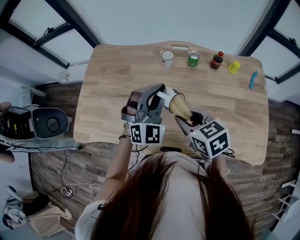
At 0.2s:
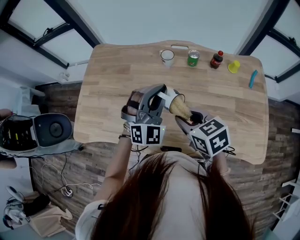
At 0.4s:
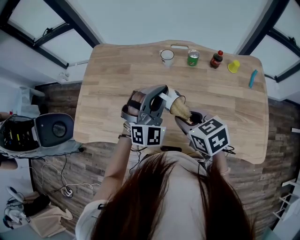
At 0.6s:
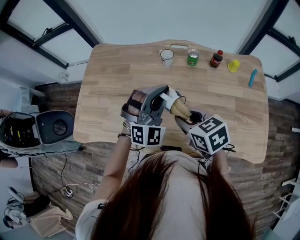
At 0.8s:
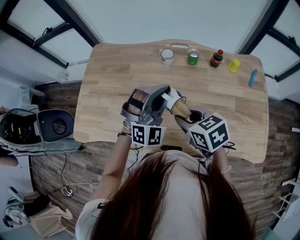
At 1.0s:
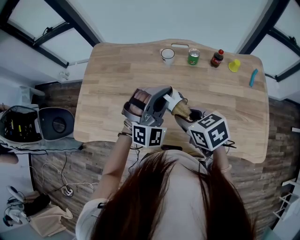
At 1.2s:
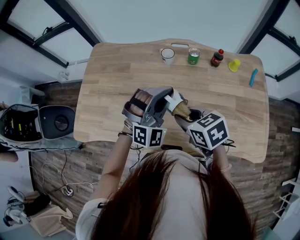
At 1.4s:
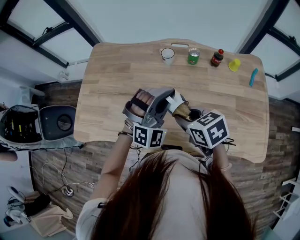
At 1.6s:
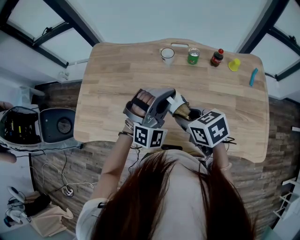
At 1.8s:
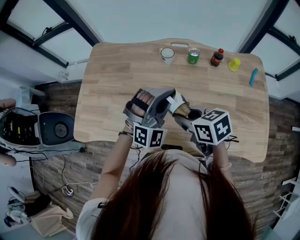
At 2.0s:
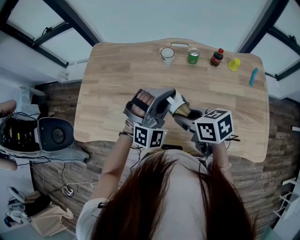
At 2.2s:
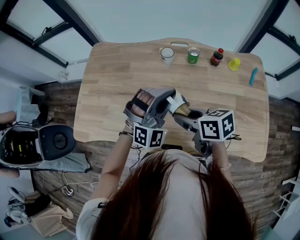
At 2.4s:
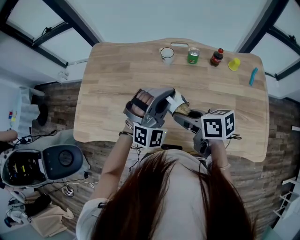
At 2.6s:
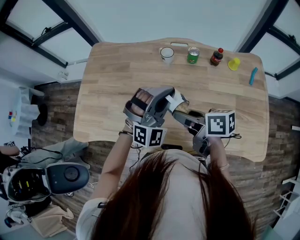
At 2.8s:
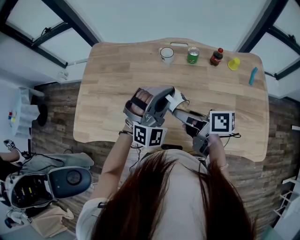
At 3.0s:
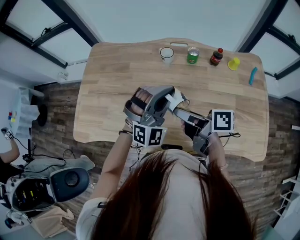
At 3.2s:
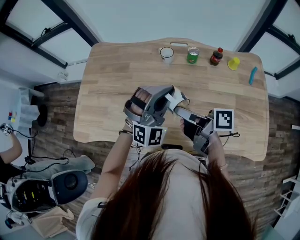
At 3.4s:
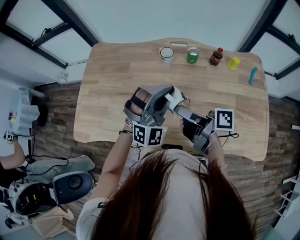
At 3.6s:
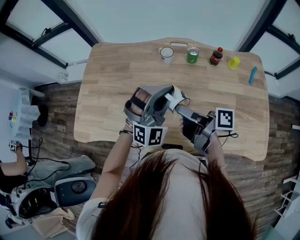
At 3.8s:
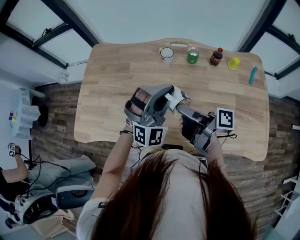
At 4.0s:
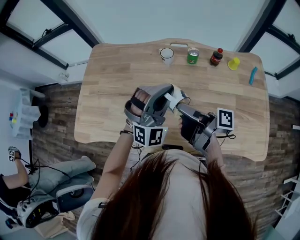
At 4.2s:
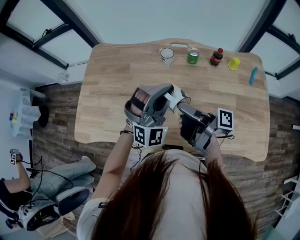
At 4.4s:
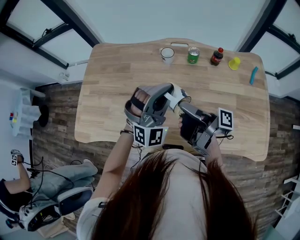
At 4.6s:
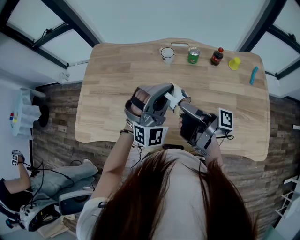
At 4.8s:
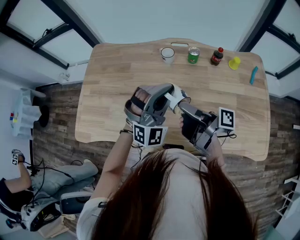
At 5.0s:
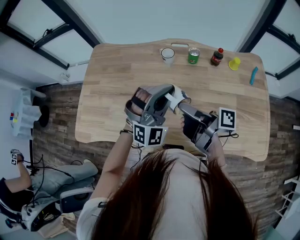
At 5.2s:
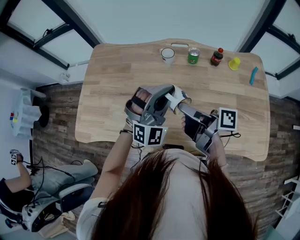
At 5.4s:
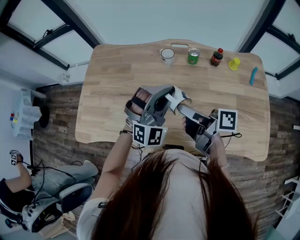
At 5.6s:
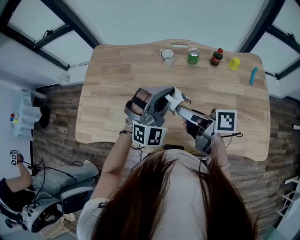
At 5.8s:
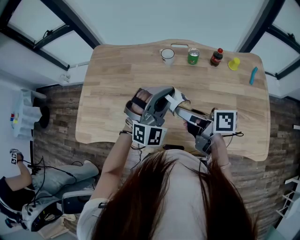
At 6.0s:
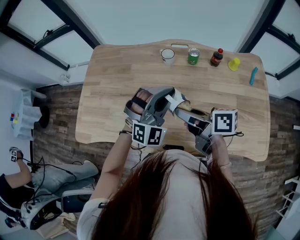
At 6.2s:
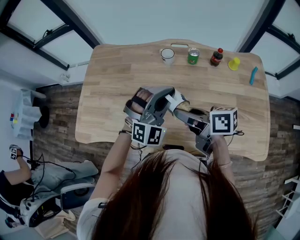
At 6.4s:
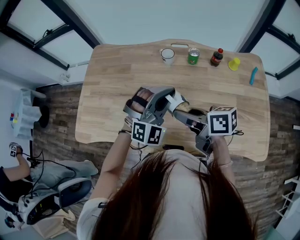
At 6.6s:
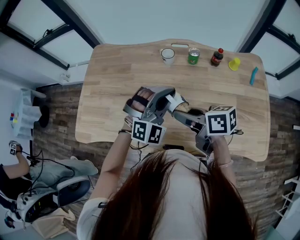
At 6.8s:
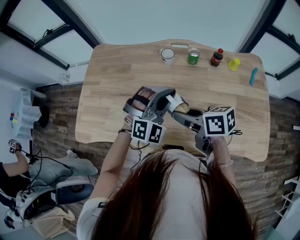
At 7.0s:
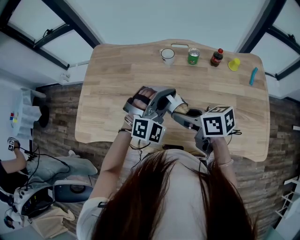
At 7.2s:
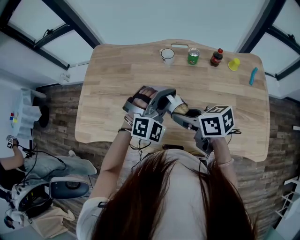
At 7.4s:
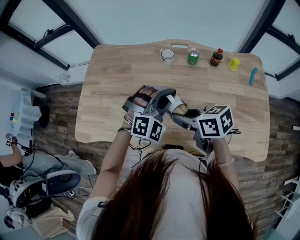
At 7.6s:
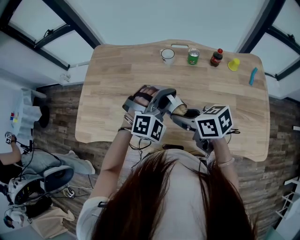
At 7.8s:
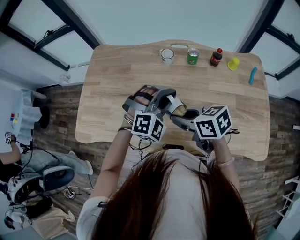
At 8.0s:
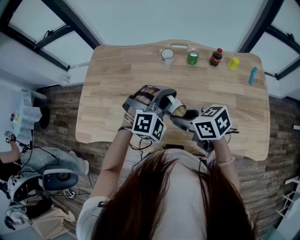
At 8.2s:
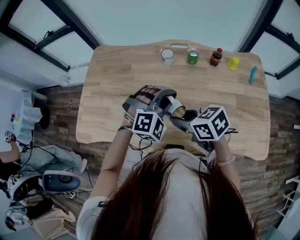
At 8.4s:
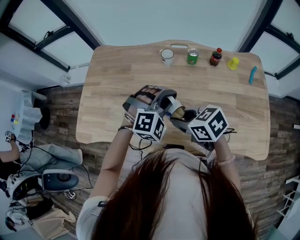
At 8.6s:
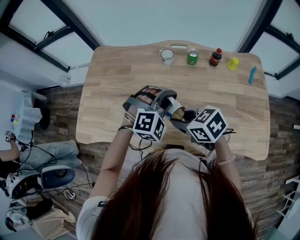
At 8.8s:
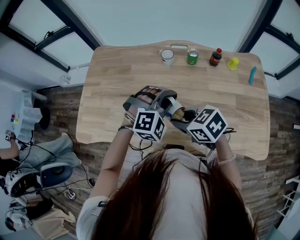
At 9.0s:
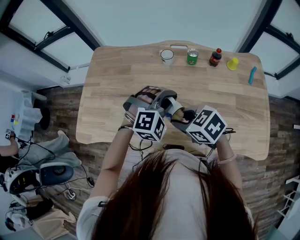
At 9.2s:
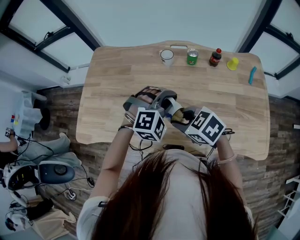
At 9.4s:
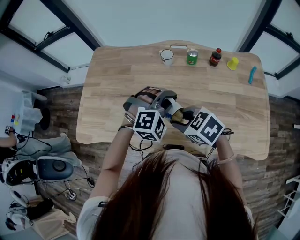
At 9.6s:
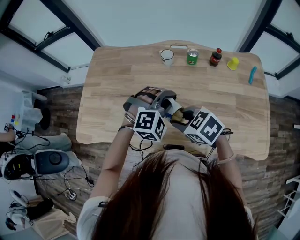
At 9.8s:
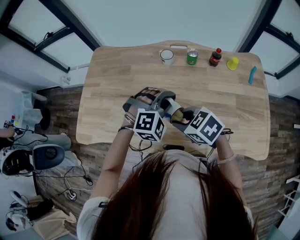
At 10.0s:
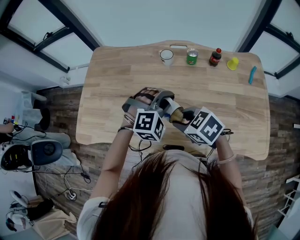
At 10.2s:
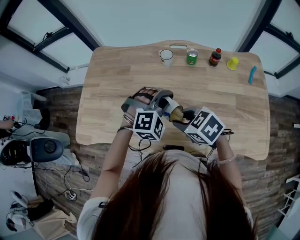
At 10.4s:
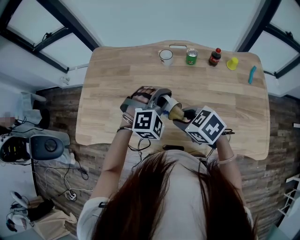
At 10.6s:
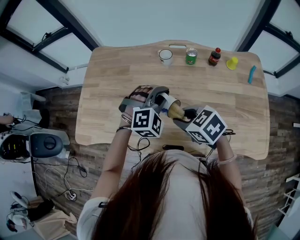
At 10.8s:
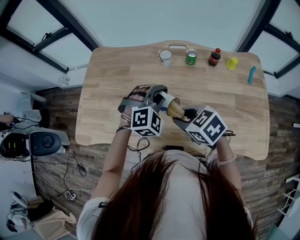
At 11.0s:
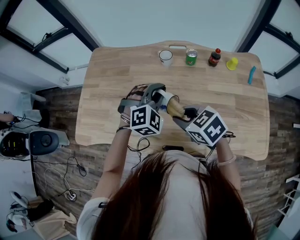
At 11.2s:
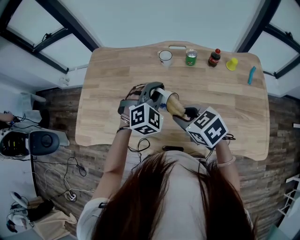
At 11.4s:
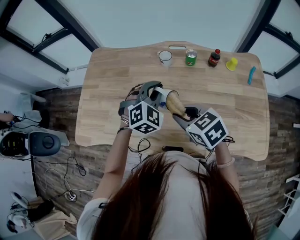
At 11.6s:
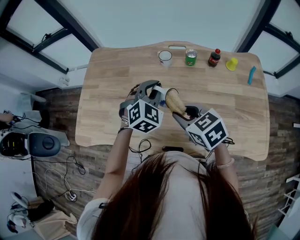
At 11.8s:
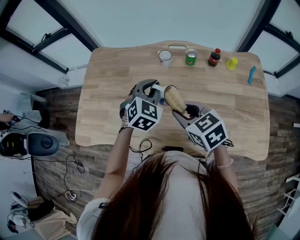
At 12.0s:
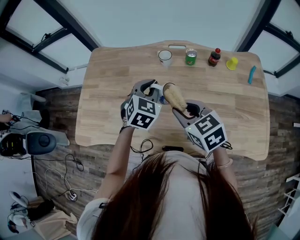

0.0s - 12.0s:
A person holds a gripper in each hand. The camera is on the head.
0.0s - 1.6s: The grippers make only small movements.
1.6s - 3.0s: The right gripper points its fingers about 30 degrees further upward.
3.0s - 4.4s: The right gripper changes its angle by approximately 40 degrees.
4.4s - 6.0s: The right gripper changes its angle by roughly 50 degrees.
6.0s - 7.6s: The right gripper turns by roughly 30 degrees.
7.6s - 9.0s: The right gripper changes its angle by approximately 30 degrees.
9.0s - 10.4s: The grippers stay close to where they were, moving slightly.
10.4s - 12.0s: The left gripper travels forward by about 5 cm, and rotates around the line of its fingers by some 40 degrees, counterclockwise from behind. The right gripper ends up some 5 cm from where it was, and swivels about 20 degrees.

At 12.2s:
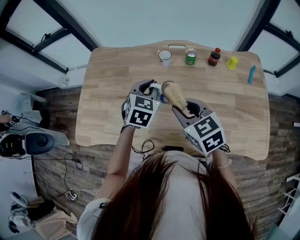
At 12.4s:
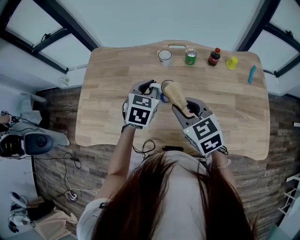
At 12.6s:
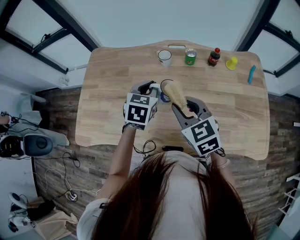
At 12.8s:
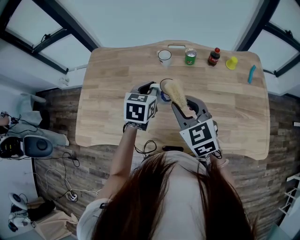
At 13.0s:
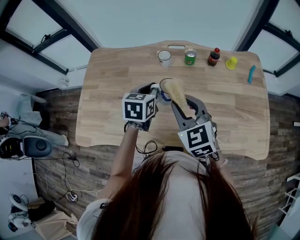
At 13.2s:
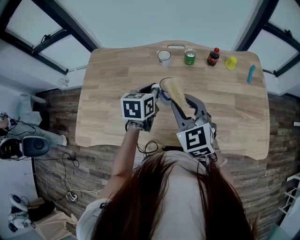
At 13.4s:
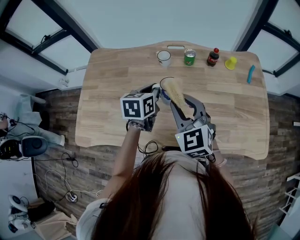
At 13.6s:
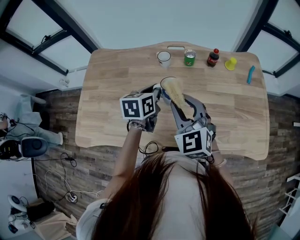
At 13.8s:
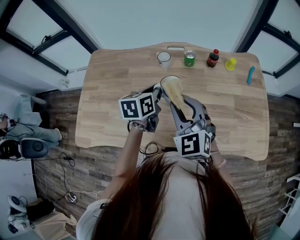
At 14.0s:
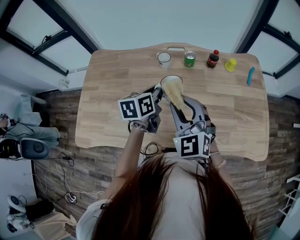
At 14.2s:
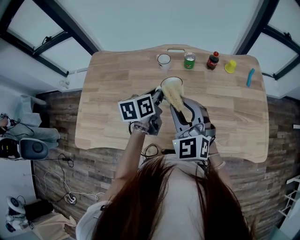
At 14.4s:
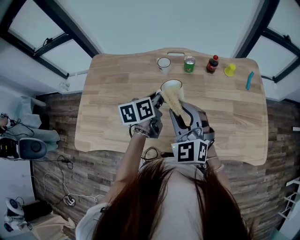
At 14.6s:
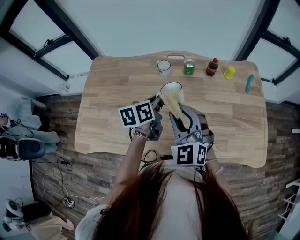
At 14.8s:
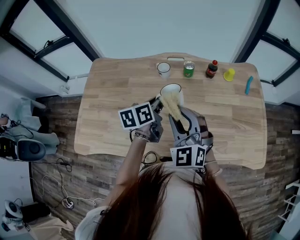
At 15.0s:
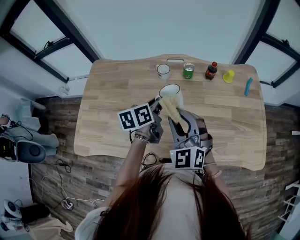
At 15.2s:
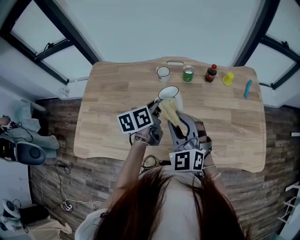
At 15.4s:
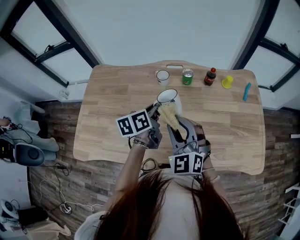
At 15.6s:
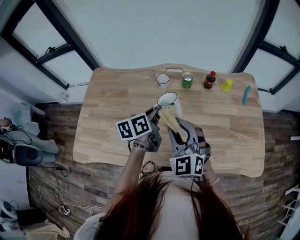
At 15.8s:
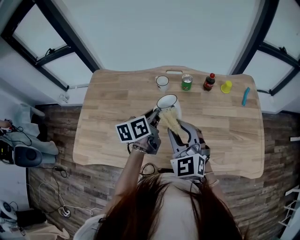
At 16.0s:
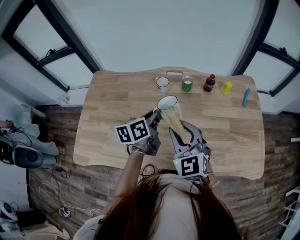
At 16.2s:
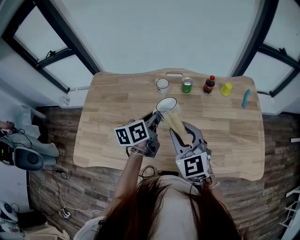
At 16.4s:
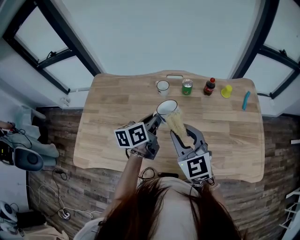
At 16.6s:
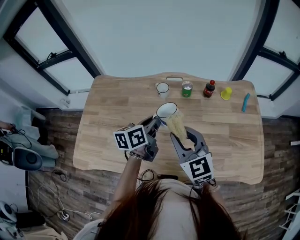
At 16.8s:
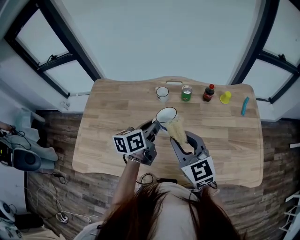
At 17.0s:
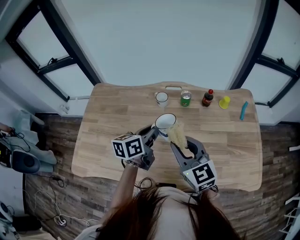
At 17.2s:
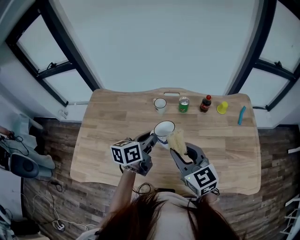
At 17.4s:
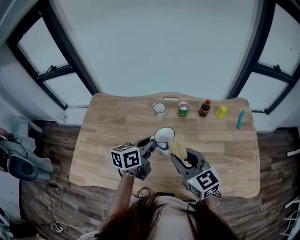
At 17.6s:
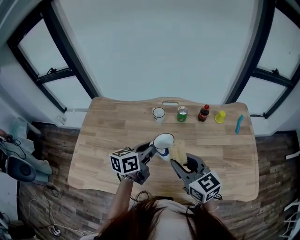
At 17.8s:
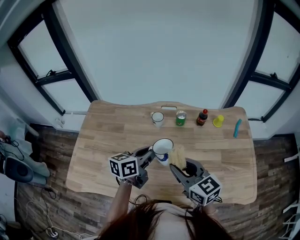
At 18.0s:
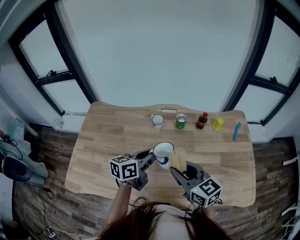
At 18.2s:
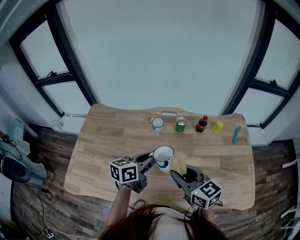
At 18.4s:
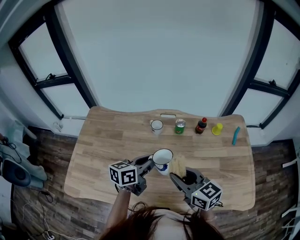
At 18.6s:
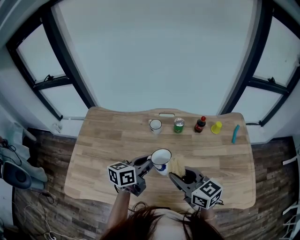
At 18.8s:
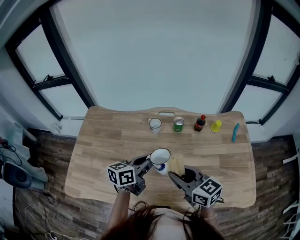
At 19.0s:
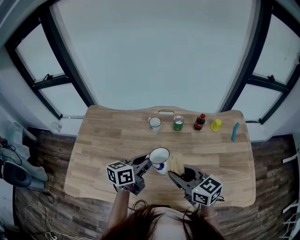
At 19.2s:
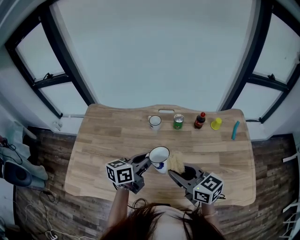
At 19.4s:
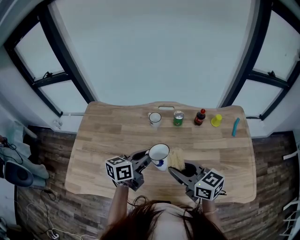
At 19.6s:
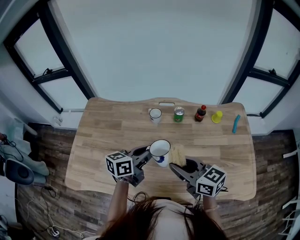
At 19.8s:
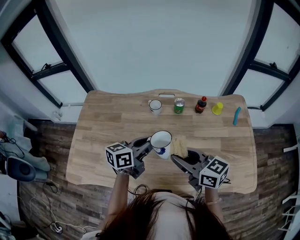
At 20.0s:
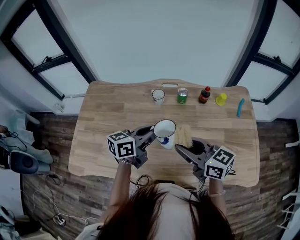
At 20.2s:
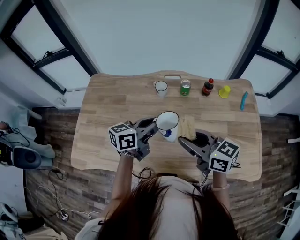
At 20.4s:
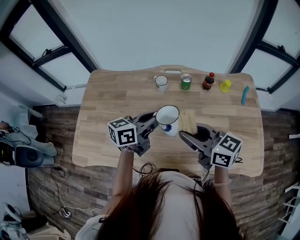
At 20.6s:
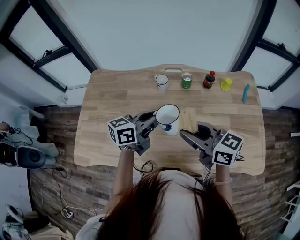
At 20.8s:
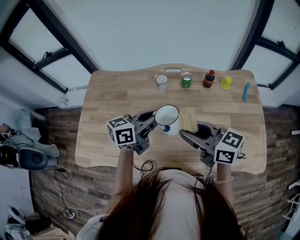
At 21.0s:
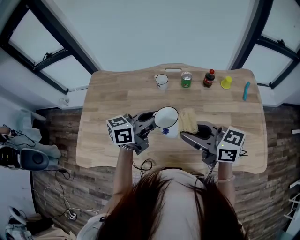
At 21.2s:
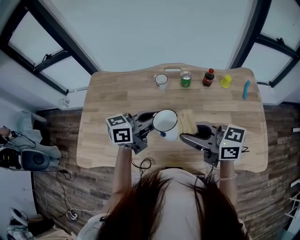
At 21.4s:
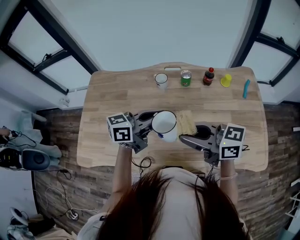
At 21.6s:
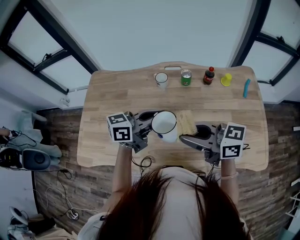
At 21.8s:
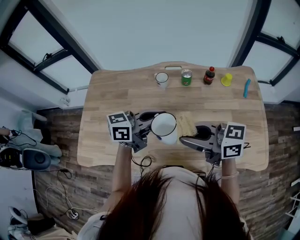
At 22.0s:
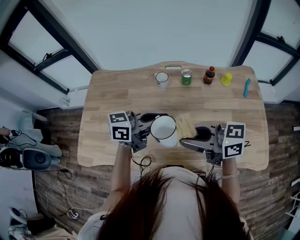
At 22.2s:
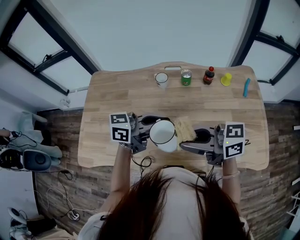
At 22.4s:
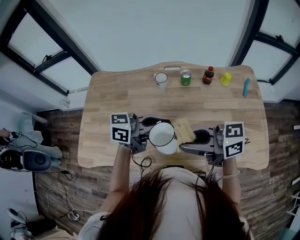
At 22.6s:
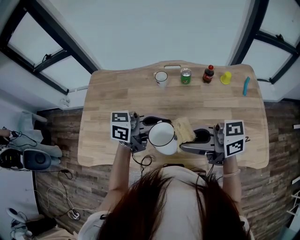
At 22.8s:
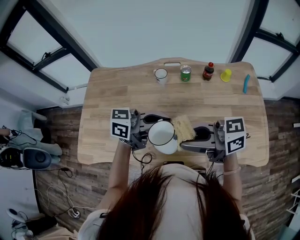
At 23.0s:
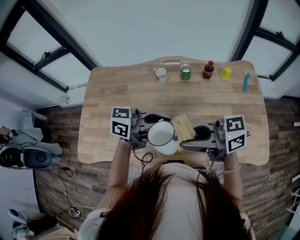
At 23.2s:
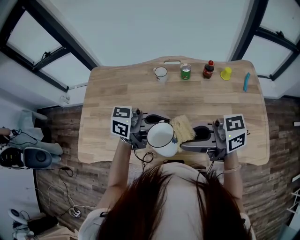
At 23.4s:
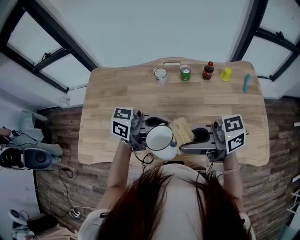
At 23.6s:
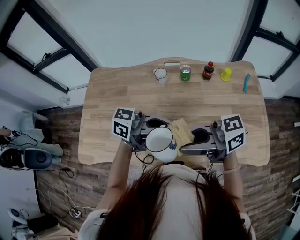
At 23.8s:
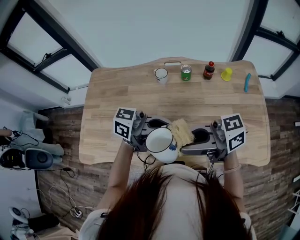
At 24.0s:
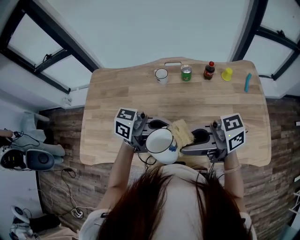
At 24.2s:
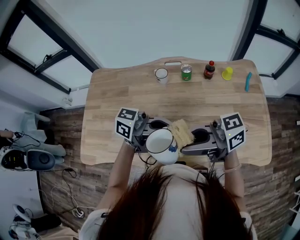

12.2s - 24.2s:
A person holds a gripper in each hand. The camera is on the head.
12.2s - 13.8s: The left gripper changes its angle by about 40 degrees. The right gripper rotates some 30 degrees.
13.8s - 15.2s: The grippers stay close to where they were, moving slightly.
15.2s - 16.6s: The right gripper rotates some 30 degrees.
16.6s - 18.2s: The right gripper turns by about 20 degrees.
18.2s - 19.8s: The grippers make only small movements.
19.8s - 21.2s: The grippers stay close to where they were, moving slightly.
21.2s - 22.6s: The left gripper shifts by approximately 5 cm, and turns by some 20 degrees.
22.6s - 24.2s: There are only small adjustments of the grippers.
